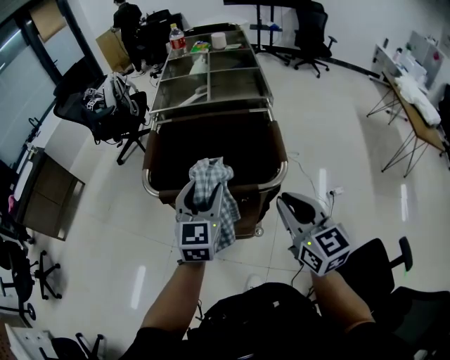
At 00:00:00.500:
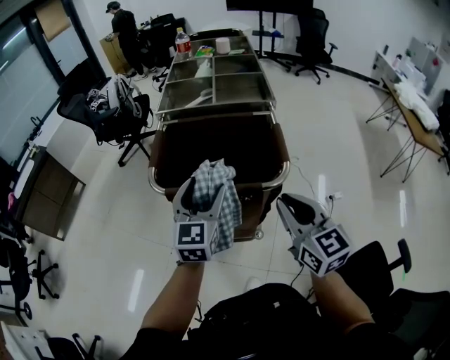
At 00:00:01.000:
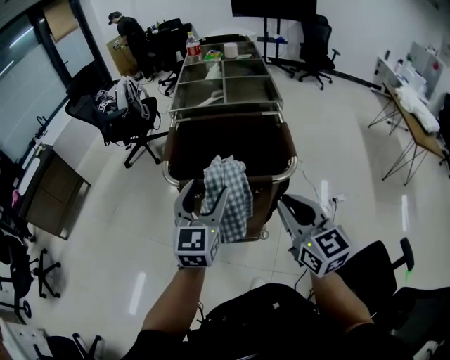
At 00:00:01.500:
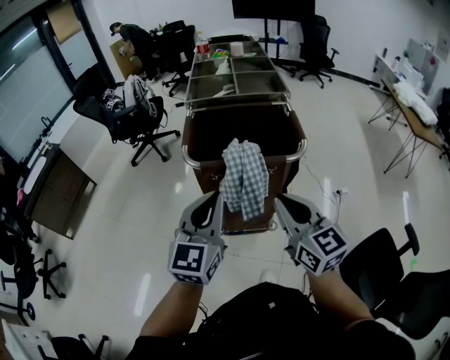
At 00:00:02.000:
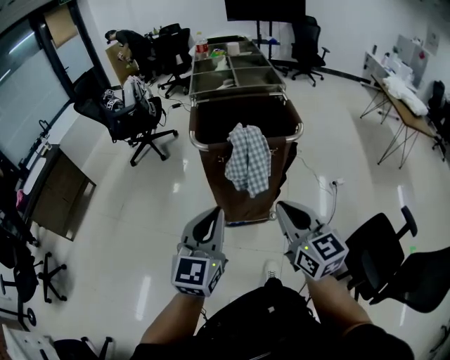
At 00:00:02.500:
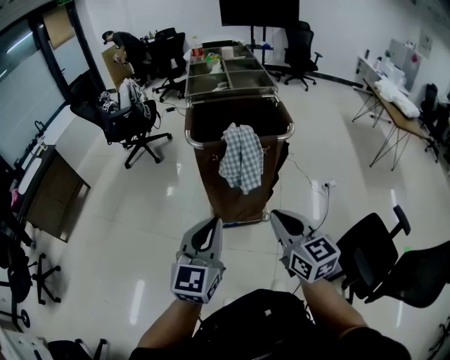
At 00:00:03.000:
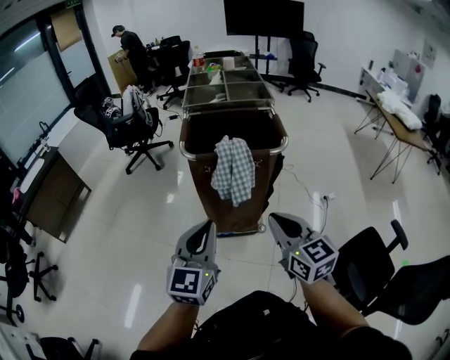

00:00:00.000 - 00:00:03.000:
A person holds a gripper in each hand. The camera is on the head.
00:00:00.000 - 00:00:01.500: The right gripper shifts about 15 cm to the left and backward; the left gripper goes about 20 cm backward, to the left and upward, and closes.
00:00:01.500 - 00:00:03.000: Both grippers move backward, about 10 cm.

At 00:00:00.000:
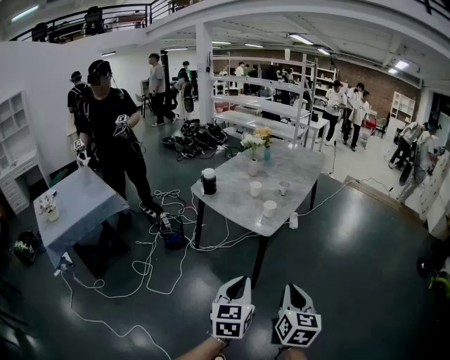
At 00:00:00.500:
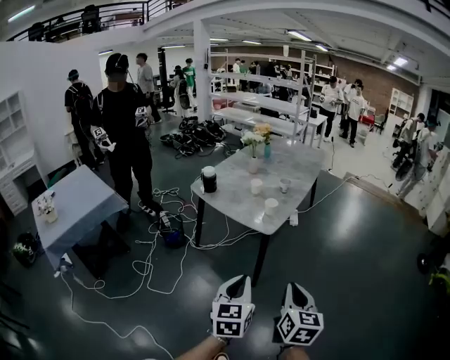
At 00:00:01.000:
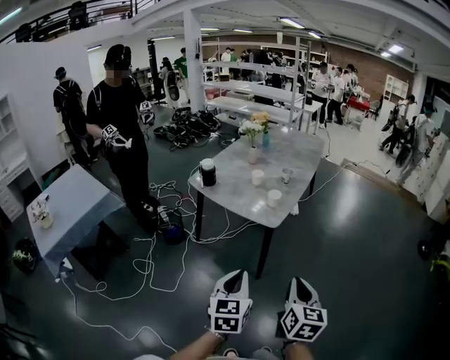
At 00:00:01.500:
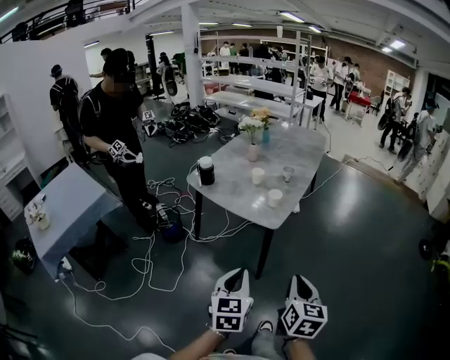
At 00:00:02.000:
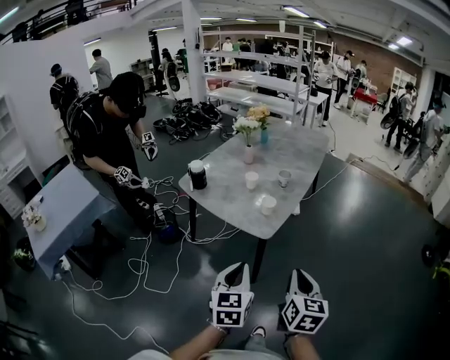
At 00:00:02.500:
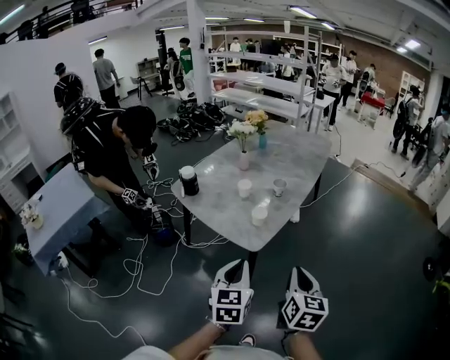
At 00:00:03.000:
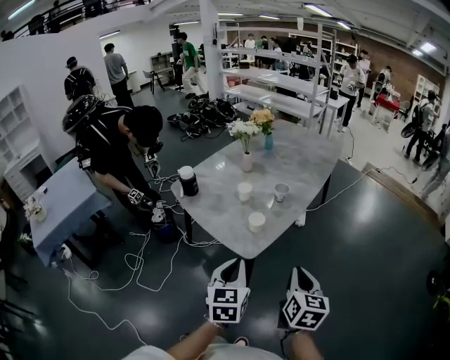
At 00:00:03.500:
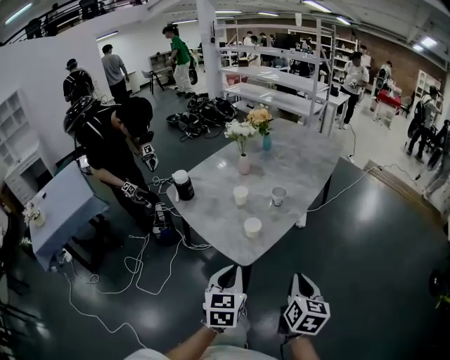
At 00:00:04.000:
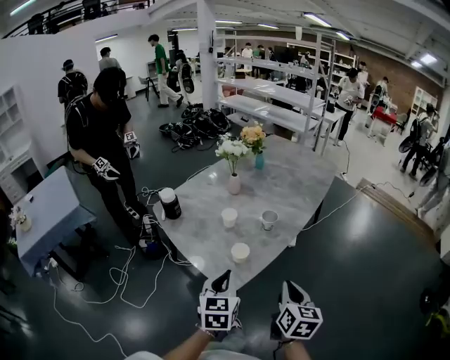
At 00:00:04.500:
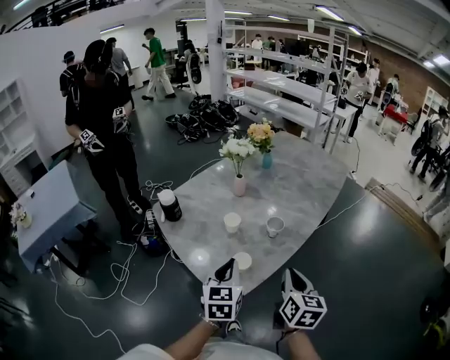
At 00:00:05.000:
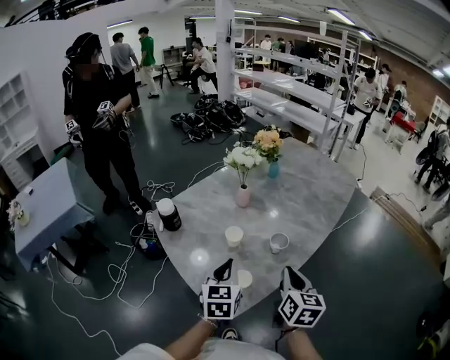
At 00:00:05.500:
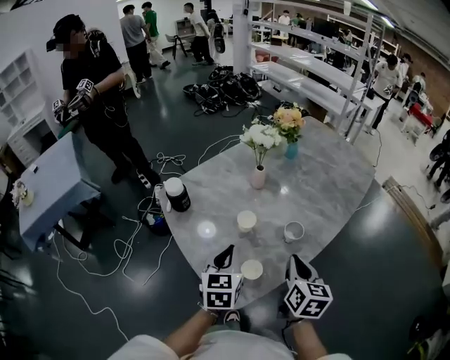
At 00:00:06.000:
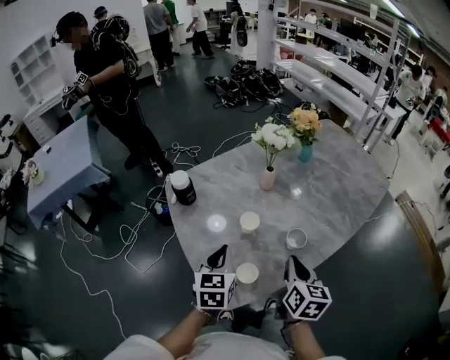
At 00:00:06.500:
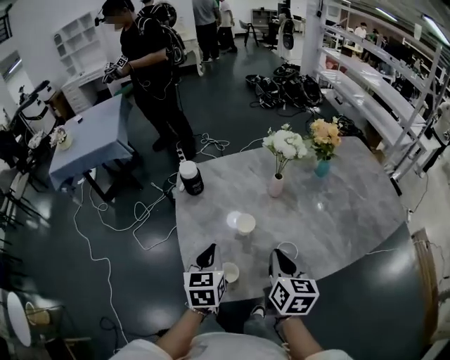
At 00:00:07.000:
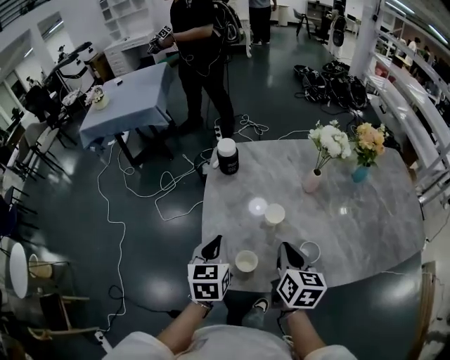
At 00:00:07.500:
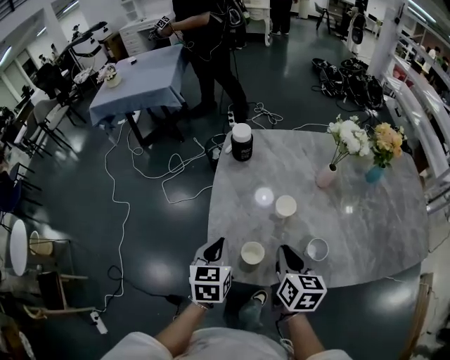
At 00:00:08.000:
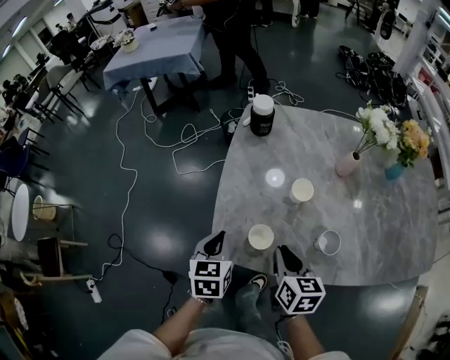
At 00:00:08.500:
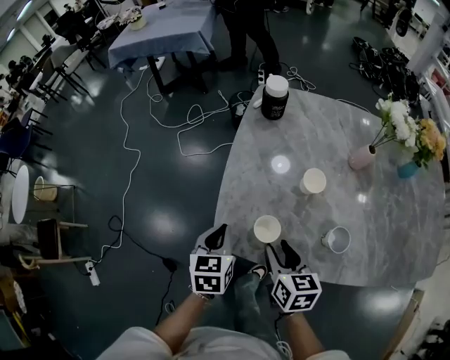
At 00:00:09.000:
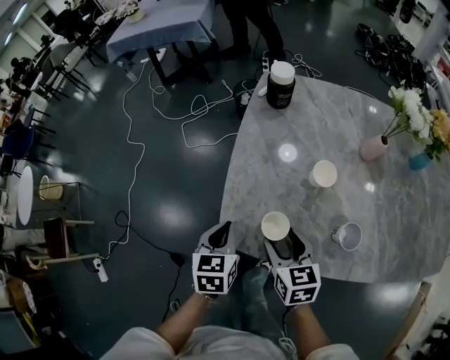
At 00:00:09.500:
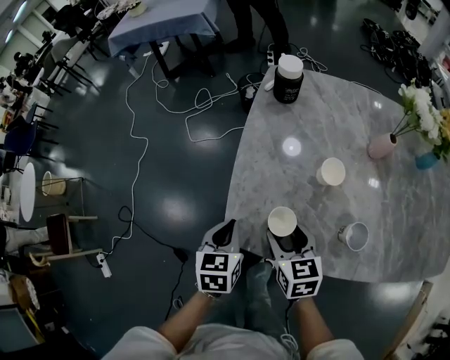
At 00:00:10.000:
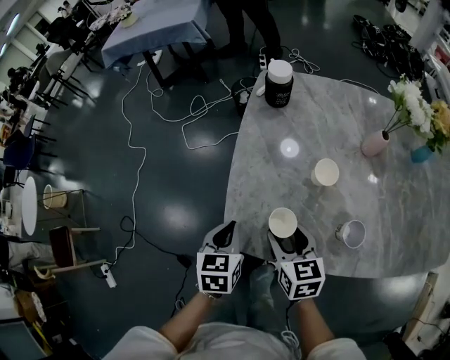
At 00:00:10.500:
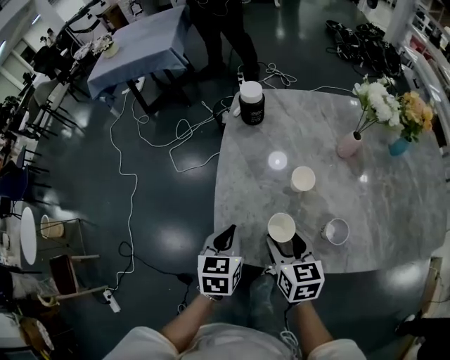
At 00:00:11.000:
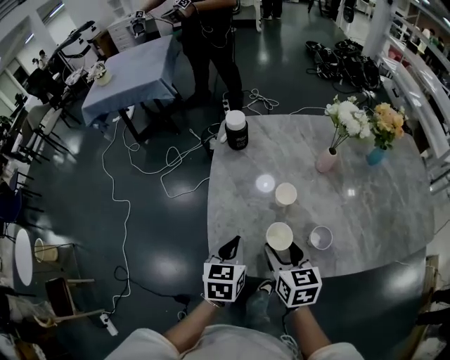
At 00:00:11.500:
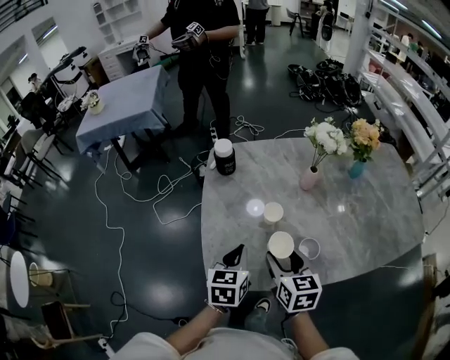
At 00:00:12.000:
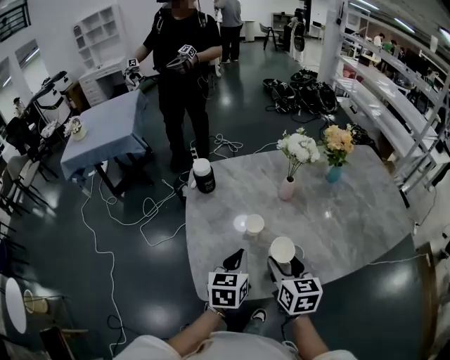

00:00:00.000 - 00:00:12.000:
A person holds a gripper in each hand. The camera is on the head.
00:00:00.000 - 00:00:02.000: Both grippers move forward, roughly 15 cm.
00:00:02.000 - 00:00:04.000: Both grippers move forward and to the right, approximately 25 cm.
00:00:04.000 - 00:00:06.000: The two grippers go roughly 20 cm forward.
00:00:06.000 - 00:00:08.000: The left gripper shifts by about 15 cm, and turns by about 40 degrees; the right gripper is displaced downward by approximately 10 cm, and turns by about 50 degrees.
00:00:08.000 - 00:00:10.000: The right gripper shifts by some 5 cm, and opens.
00:00:10.000 - 00:00:12.000: The right gripper ends up about 20 cm from where it was, and changes its angle by roughly 30 degrees; the left gripper shifts by about 20 cm, and swivels roughly 30 degrees.

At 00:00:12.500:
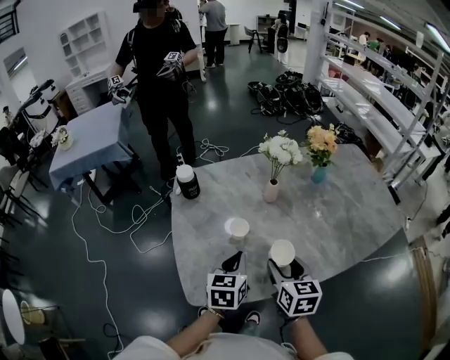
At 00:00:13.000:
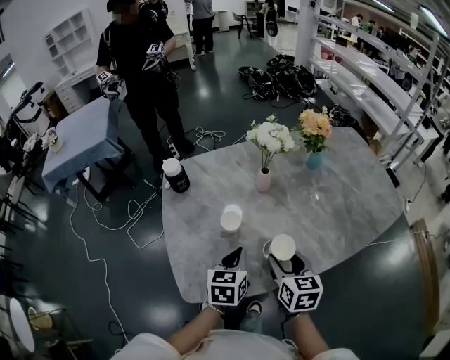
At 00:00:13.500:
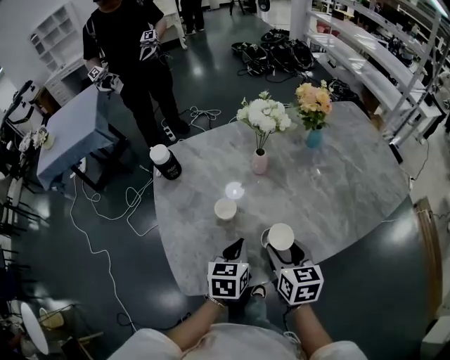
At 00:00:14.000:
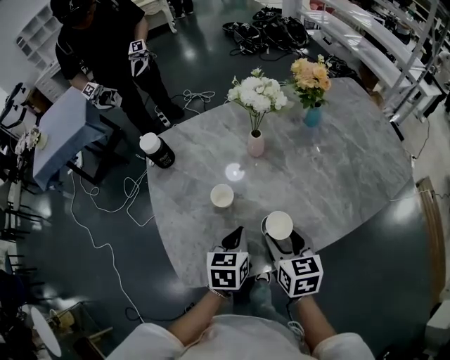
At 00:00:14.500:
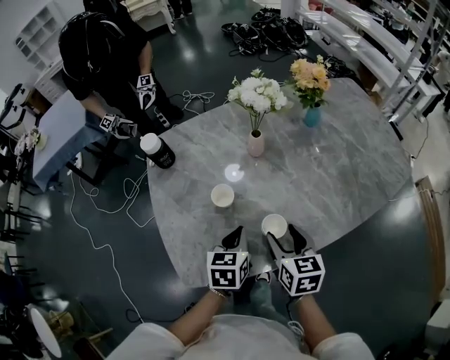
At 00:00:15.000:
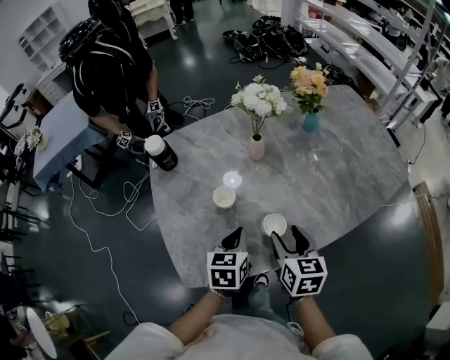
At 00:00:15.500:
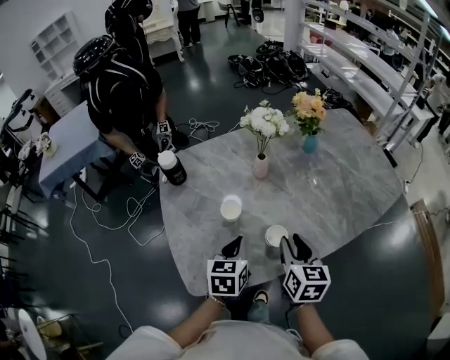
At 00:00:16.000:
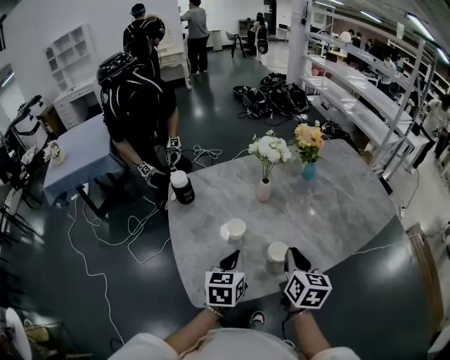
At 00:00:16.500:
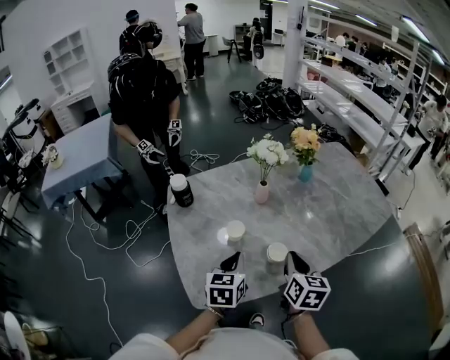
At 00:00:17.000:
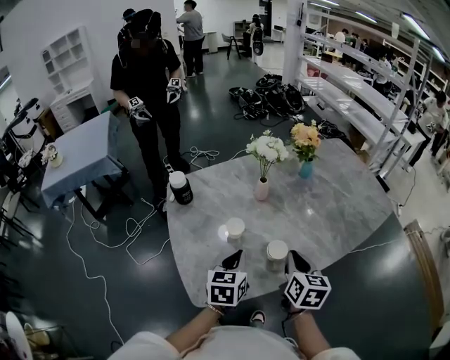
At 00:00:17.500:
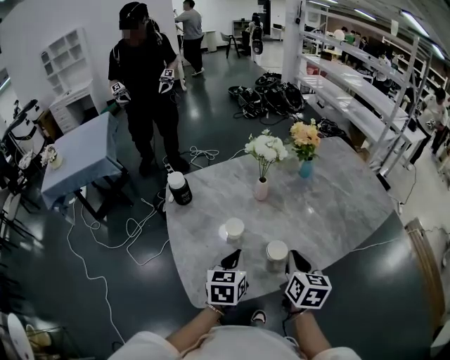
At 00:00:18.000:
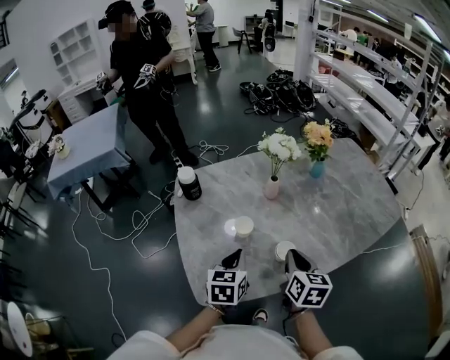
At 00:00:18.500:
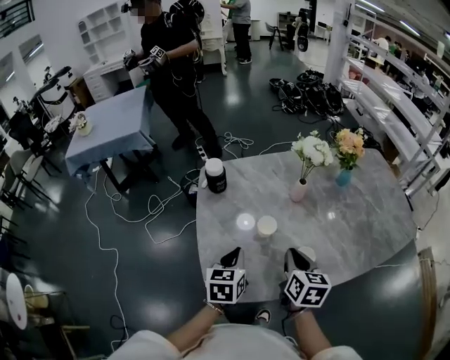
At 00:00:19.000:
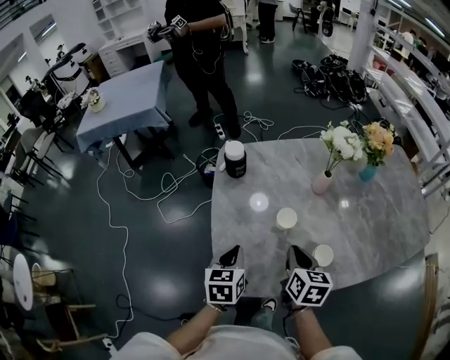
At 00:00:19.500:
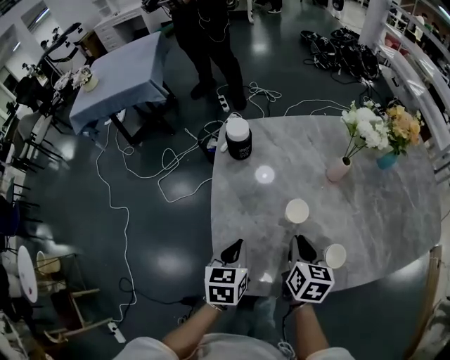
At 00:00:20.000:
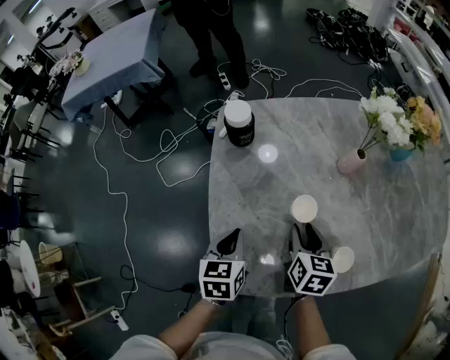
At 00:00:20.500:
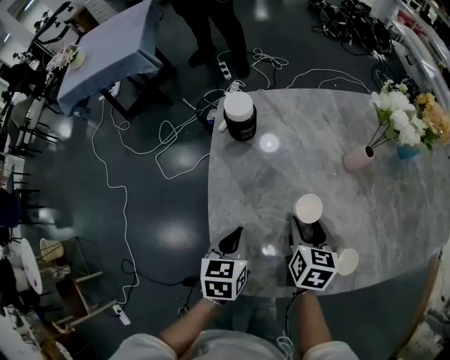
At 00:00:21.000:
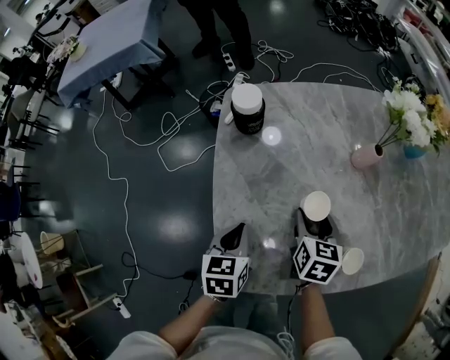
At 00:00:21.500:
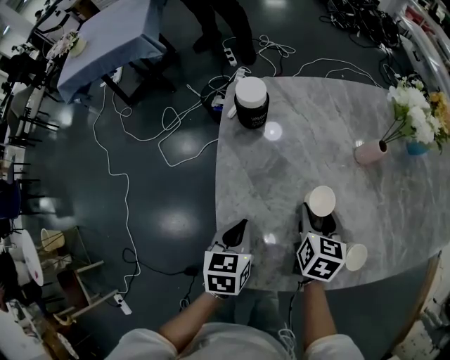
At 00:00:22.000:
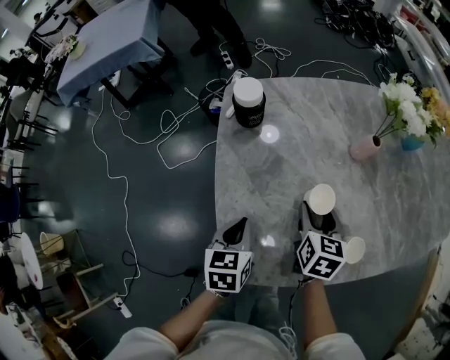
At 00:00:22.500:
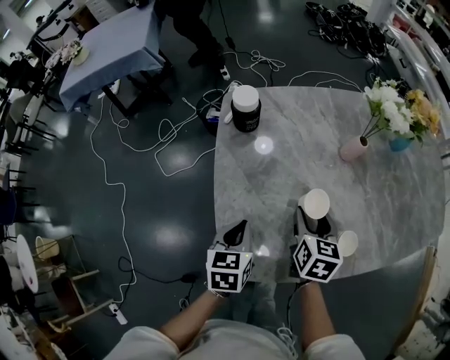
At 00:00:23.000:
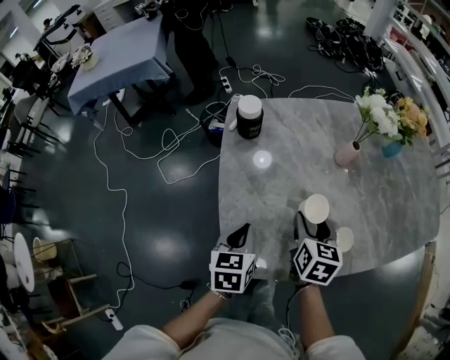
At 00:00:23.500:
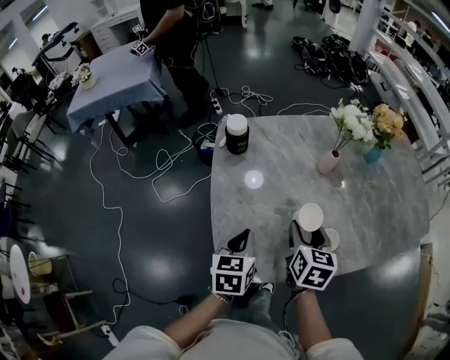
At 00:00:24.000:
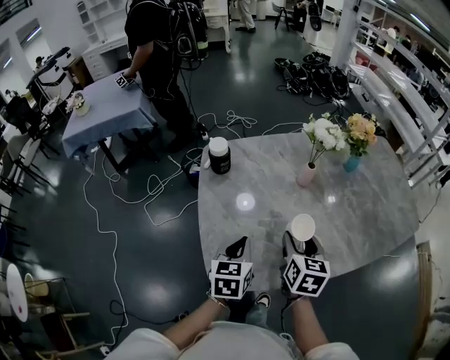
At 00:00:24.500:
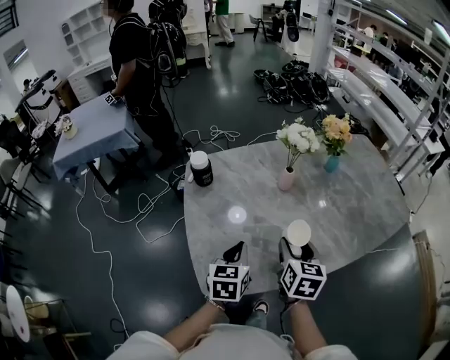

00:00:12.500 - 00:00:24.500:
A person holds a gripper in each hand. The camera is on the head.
00:00:12.500 - 00:00:14.500: Both grippers travel together downward, approximately 5 cm.
00:00:14.500 - 00:00:16.500: The two grippers go some 10 cm upward. The right gripper closes.
00:00:16.500 - 00:00:18.500: The two grippers go approximately 10 cm to the left.
00:00:18.500 - 00:00:20.500: The right gripper travels downward, forward and to the left by some 20 cm, and opens up, while the left gripper heads downward and to the left, covering roughly 15 cm.
00:00:20.500 - 00:00:22.500: The grippers make only small movements.
00:00:22.500 - 00:00:24.500: The left gripper shifts some 15 cm to the right and upward, while the right gripper shifts about 15 cm upward, to the right and backward.
